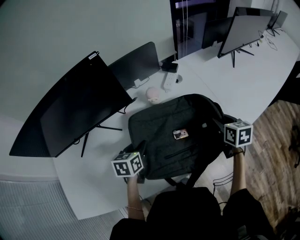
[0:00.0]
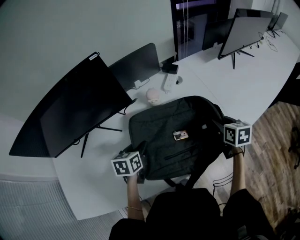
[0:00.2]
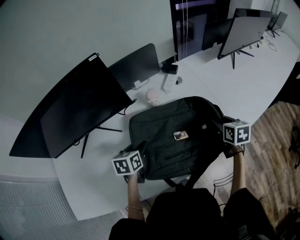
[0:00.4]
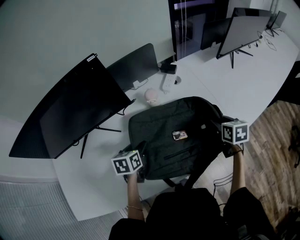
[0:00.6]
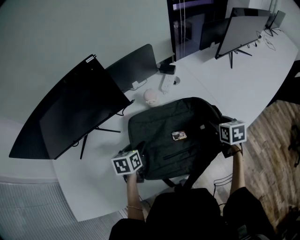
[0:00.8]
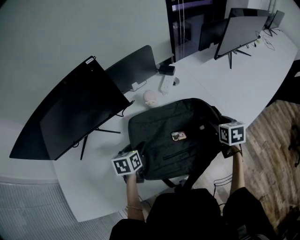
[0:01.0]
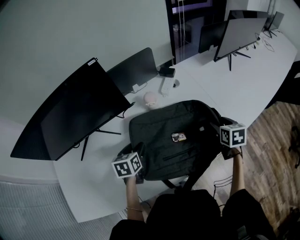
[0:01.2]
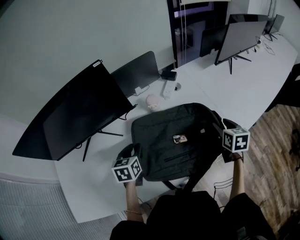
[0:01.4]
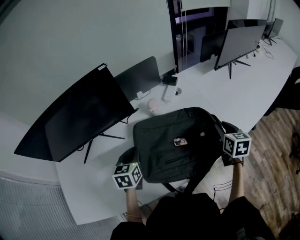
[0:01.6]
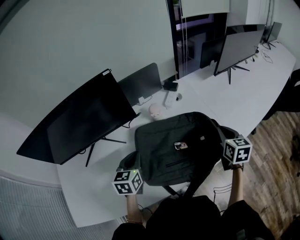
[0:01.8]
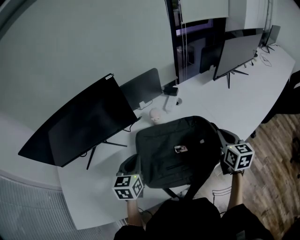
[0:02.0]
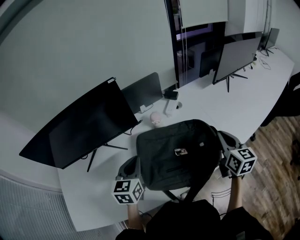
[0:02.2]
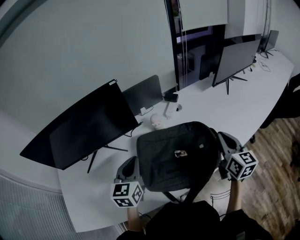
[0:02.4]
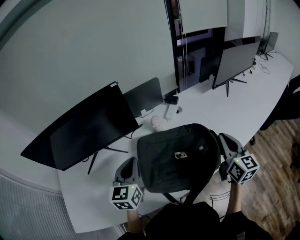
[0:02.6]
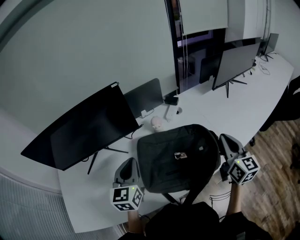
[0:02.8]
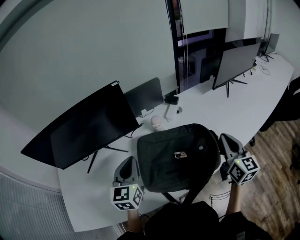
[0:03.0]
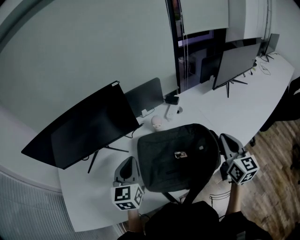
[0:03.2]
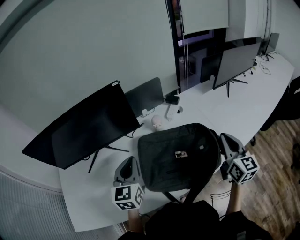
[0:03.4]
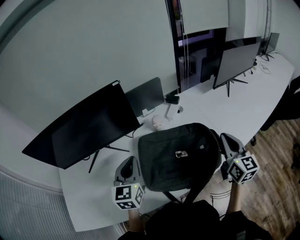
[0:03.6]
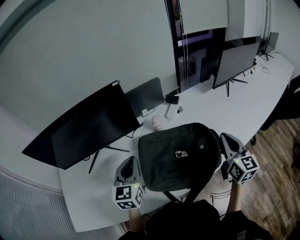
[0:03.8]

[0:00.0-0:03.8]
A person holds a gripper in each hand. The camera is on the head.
0:00.0 to 0:01.2: The right gripper opens up; the left gripper opens up.
0:01.2 to 0:02.6: The grippers both shift upward by approximately 20 cm. The right gripper tilts its fingers roughly 40 degrees upward, and closes its fingers. Meanwhile the left gripper tilts its fingers approximately 30 degrees upward, and closes up.
0:02.6 to 0:03.8: There are only small adjustments of the grippers.

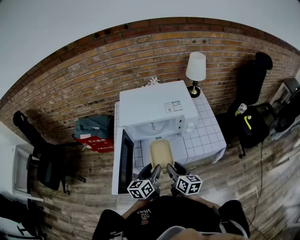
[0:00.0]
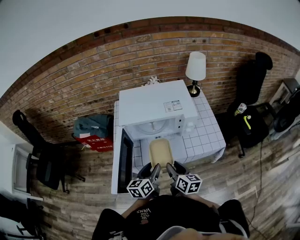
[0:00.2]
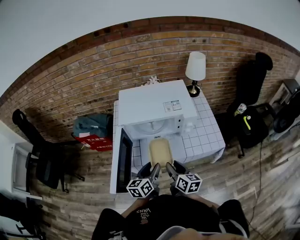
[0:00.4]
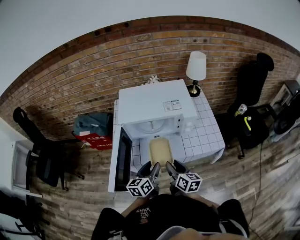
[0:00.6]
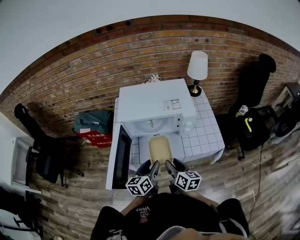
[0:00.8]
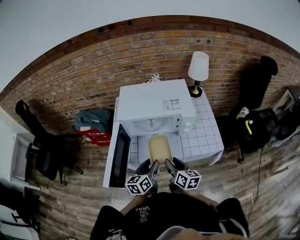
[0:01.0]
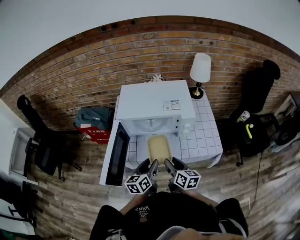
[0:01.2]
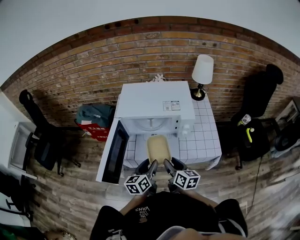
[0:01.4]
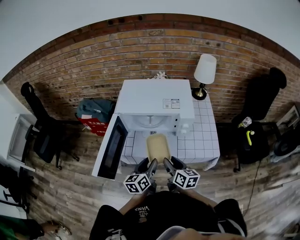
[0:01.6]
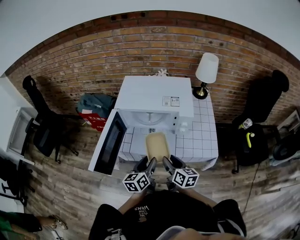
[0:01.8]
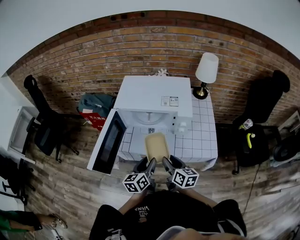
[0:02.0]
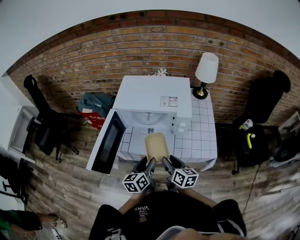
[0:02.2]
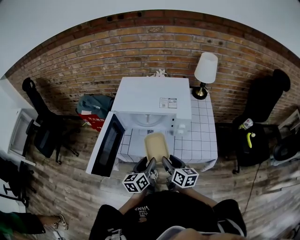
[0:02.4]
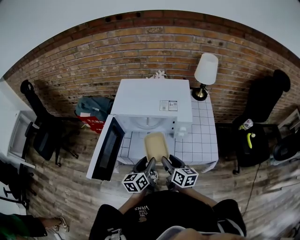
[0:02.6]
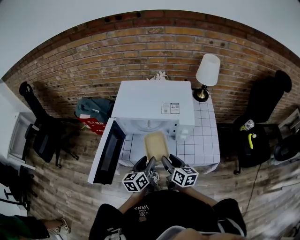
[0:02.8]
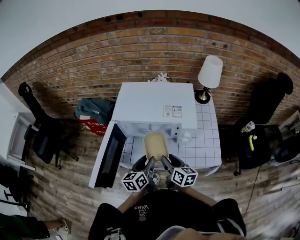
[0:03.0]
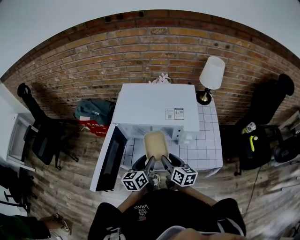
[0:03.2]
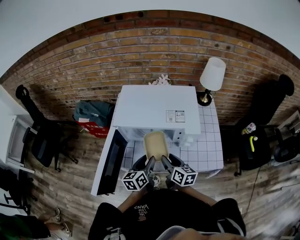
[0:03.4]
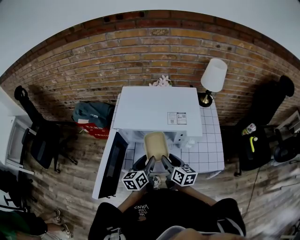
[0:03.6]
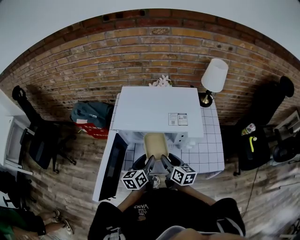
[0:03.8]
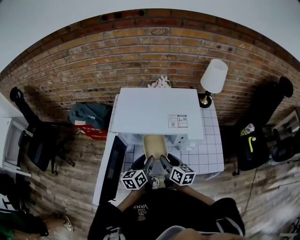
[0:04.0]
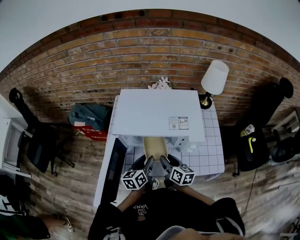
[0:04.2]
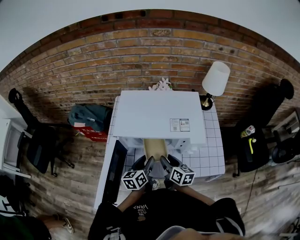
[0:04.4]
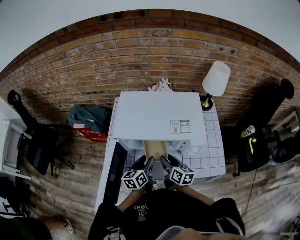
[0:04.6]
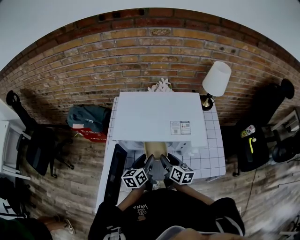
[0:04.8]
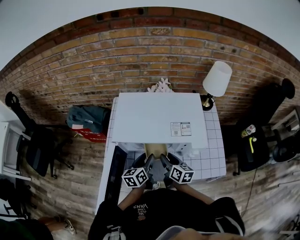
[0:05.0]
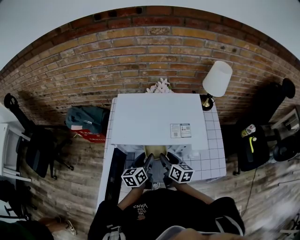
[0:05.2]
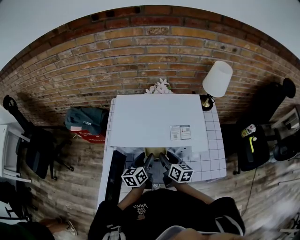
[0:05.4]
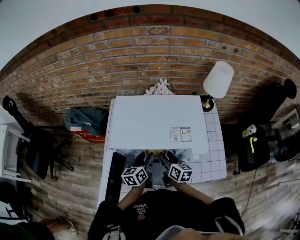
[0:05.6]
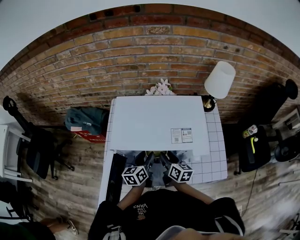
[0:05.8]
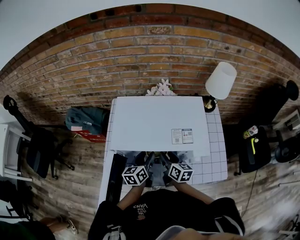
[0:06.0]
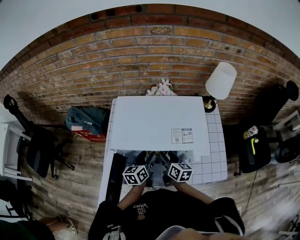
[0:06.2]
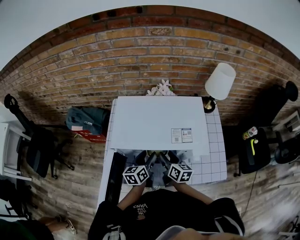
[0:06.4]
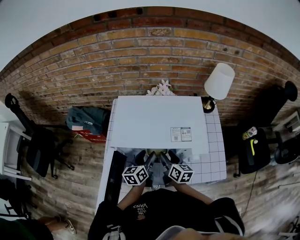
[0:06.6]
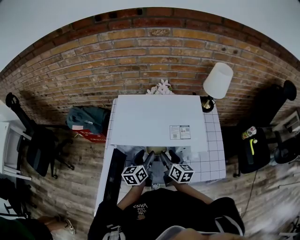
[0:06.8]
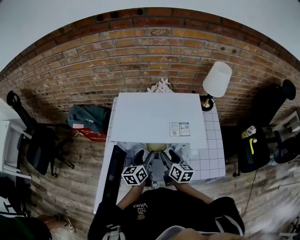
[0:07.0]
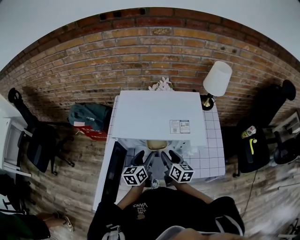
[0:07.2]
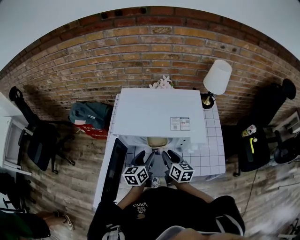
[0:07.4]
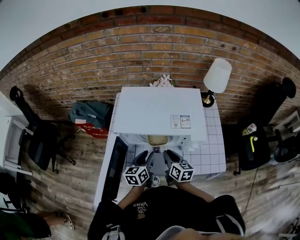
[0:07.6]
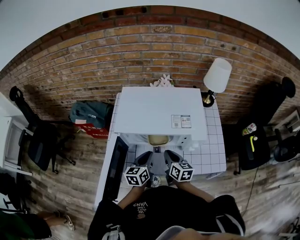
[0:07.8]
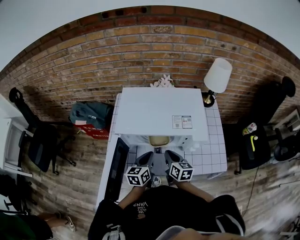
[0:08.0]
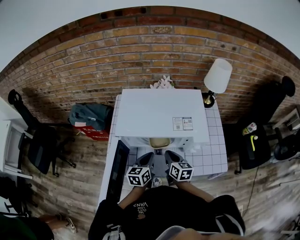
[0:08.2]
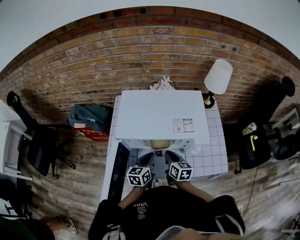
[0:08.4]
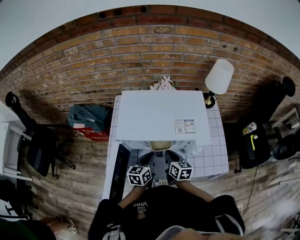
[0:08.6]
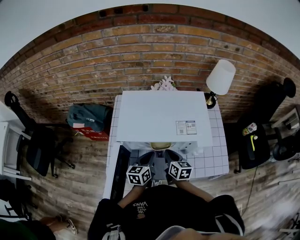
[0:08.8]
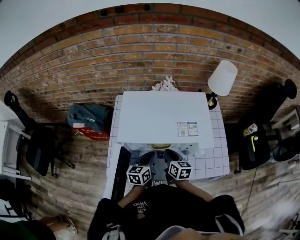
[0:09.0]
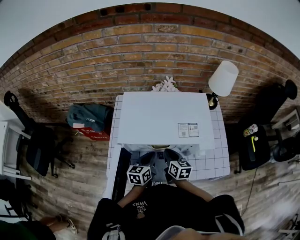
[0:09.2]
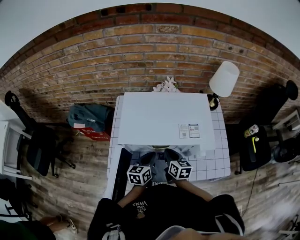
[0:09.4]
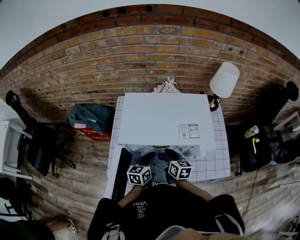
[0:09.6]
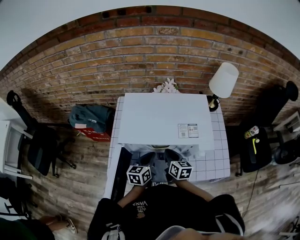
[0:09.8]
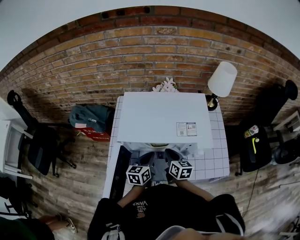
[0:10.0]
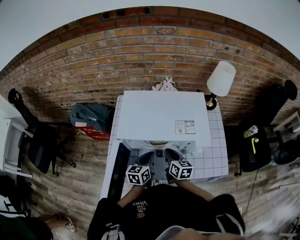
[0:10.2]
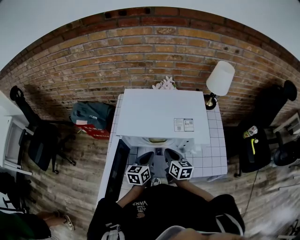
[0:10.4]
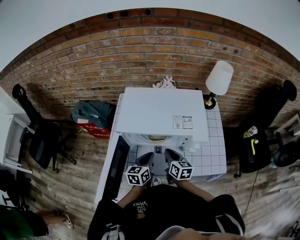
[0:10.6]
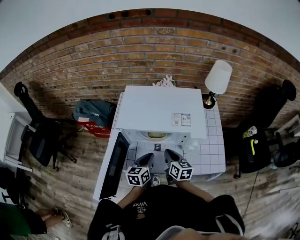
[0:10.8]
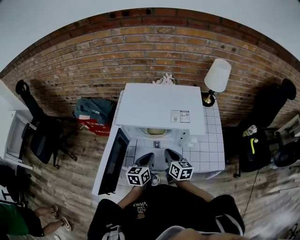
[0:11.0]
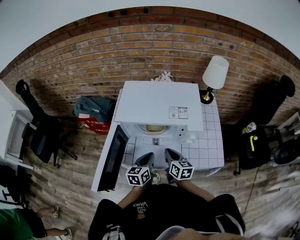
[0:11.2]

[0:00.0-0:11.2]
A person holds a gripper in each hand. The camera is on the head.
0:00.0 to 0:01.6: The grippers both shift to the right by roughly 5 cm.
0:01.6 to 0:03.2: The two grippers go roughly 10 cm forward.
0:03.2 to 0:04.8: The two grippers go approximately 10 cm forward.
0:04.8 to 0:06.4: The two grippers go some 5 cm forward.
0:06.4 to 0:08.0: Both grippers move backward, roughly 5 cm. The left gripper closes, while the right gripper closes up.
0:08.0 to 0:09.6: The right gripper shifts about 5 cm forward. The left gripper ends up roughly 5 cm from where it was.
0:09.6 to 0:11.2: Both grippers move backward, about 10 cm.

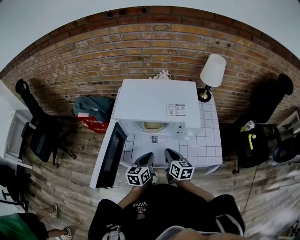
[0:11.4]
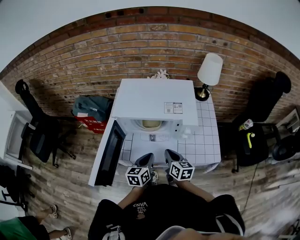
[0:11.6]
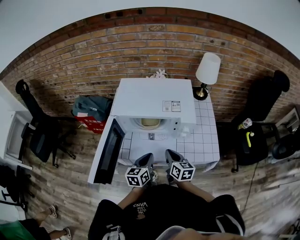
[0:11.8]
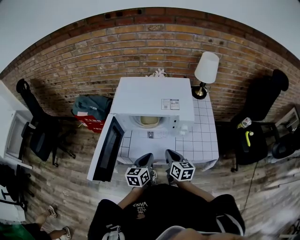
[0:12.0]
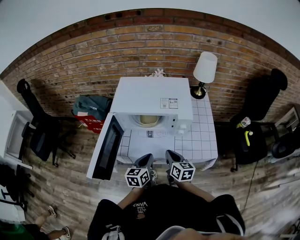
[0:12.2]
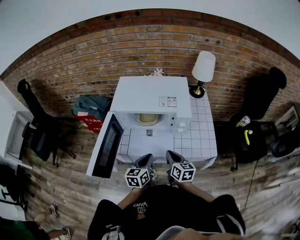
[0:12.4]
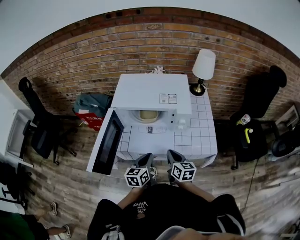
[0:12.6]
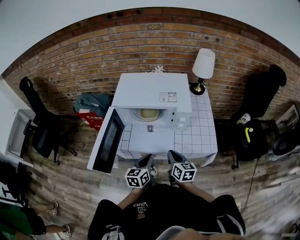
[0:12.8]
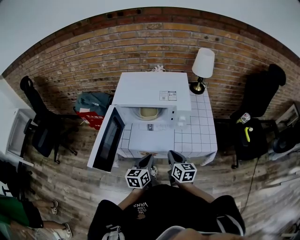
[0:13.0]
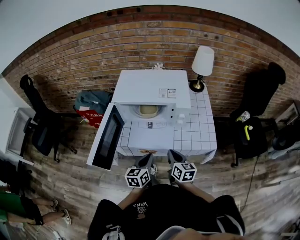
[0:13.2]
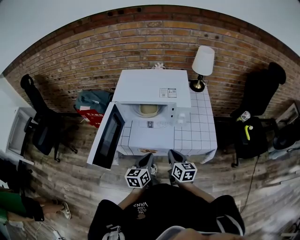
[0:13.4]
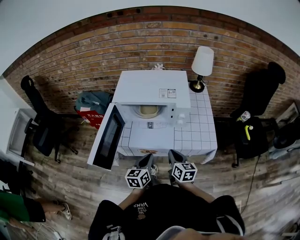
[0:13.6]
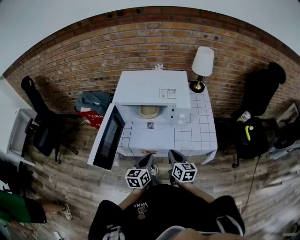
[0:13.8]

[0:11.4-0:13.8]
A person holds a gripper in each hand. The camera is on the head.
0:11.4 to 0:12.6: The grippers both shift backward by some 10 cm.
0:12.6 to 0:13.8: The grippers move only a little.

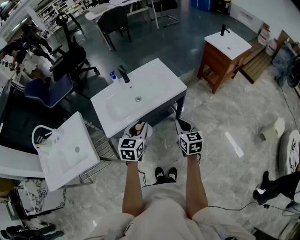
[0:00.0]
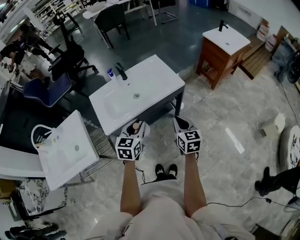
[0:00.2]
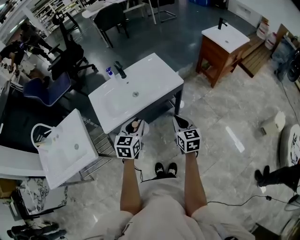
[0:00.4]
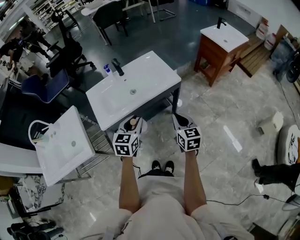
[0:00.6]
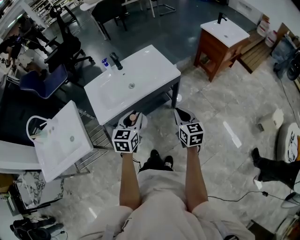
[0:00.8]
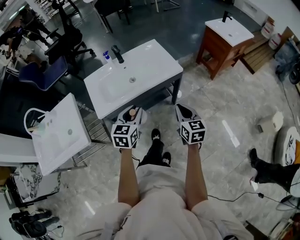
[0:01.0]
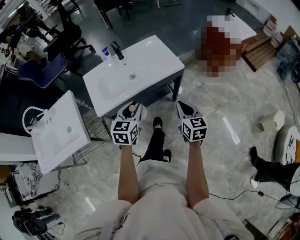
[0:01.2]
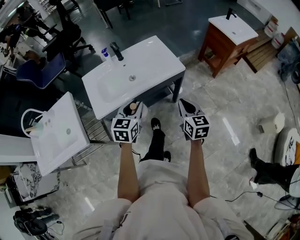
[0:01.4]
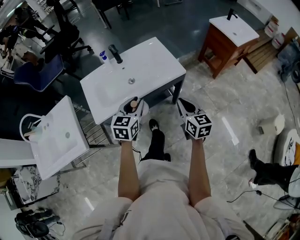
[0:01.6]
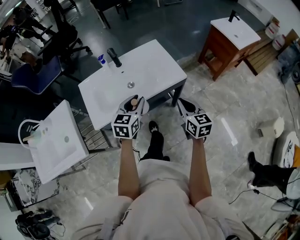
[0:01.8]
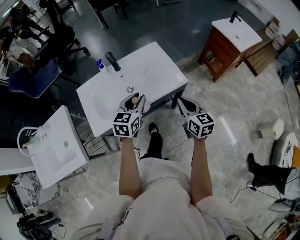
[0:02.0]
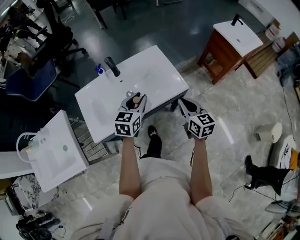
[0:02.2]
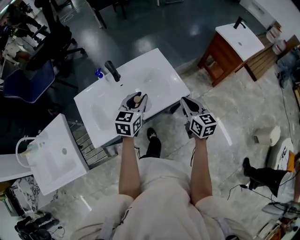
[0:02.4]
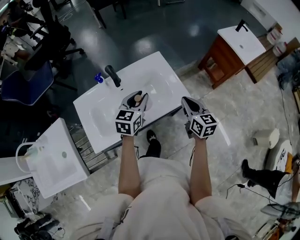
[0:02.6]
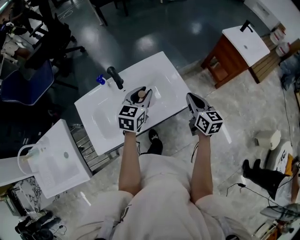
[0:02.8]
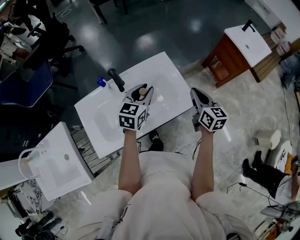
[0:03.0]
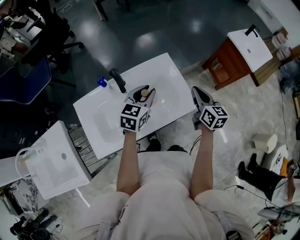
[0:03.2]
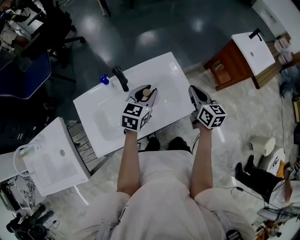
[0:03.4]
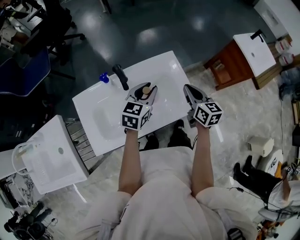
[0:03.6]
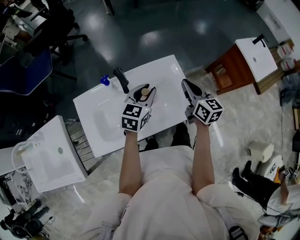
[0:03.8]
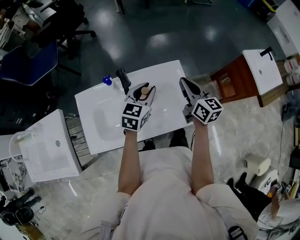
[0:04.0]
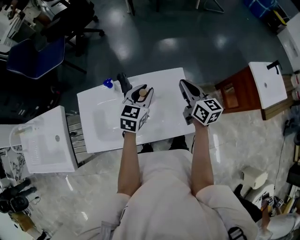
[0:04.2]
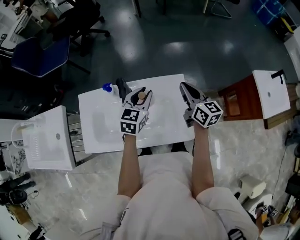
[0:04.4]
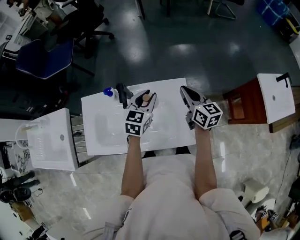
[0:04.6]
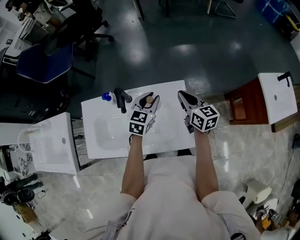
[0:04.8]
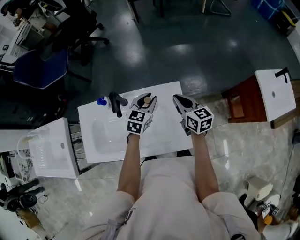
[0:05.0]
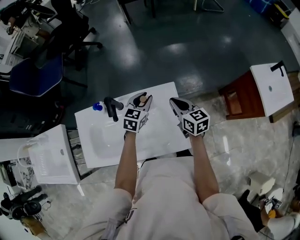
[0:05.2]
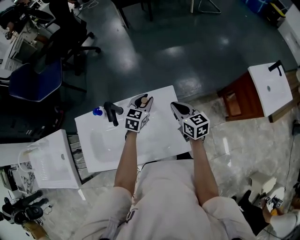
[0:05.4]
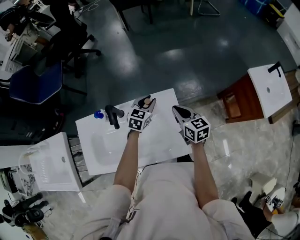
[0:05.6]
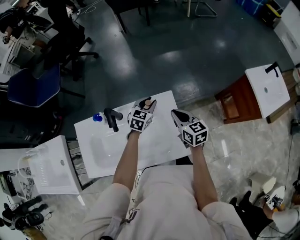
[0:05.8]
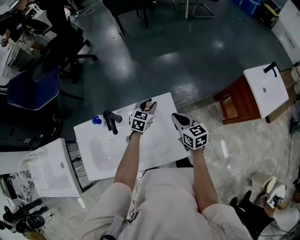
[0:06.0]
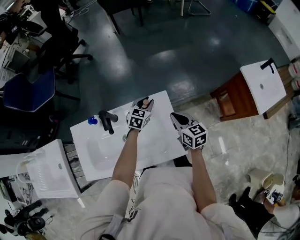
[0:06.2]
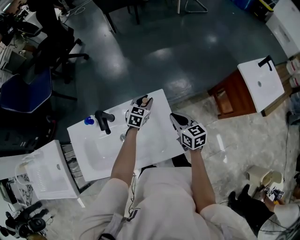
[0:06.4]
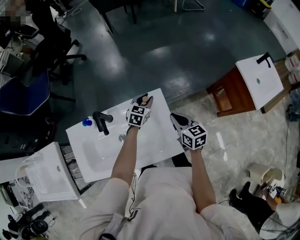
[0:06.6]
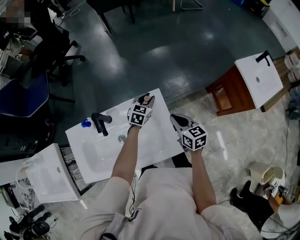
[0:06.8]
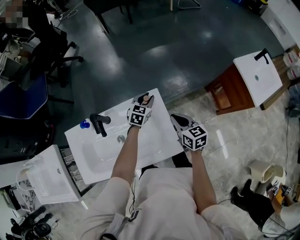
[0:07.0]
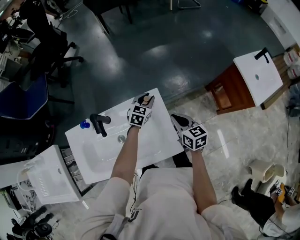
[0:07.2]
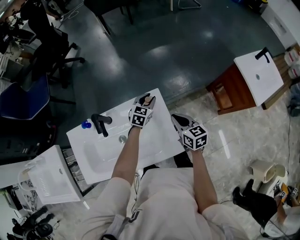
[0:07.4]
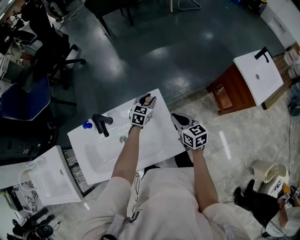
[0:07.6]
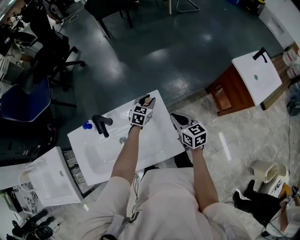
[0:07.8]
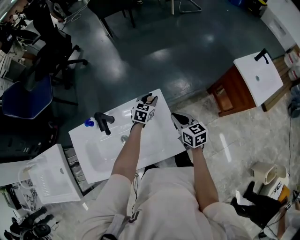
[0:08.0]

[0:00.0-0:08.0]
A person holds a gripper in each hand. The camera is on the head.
0:00.0 to 0:01.6: Both grippers move forward, some 5 cm.
0:01.6 to 0:03.2: Both grippers move forward, about 25 cm.
0:03.2 to 0:04.8: The right gripper shifts by some 20 cm, and changes its angle by some 30 degrees. Meanwhile the left gripper ends up about 10 cm from where it was, and rotates roughly 20 degrees.
0:04.8 to 0:06.4: The right gripper shifts some 10 cm downward and backward; the left gripper shifts about 15 cm downward, forward and to the right.
0:06.4 to 0:08.0: The grippers stay close to where they were, moving slightly.
